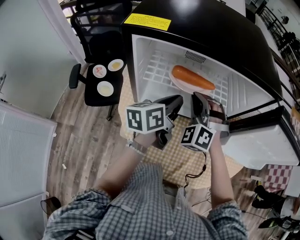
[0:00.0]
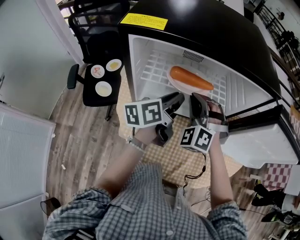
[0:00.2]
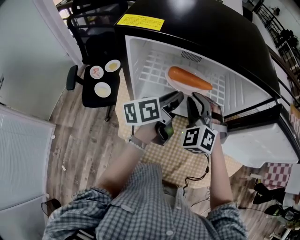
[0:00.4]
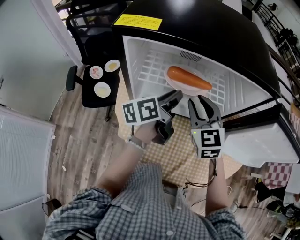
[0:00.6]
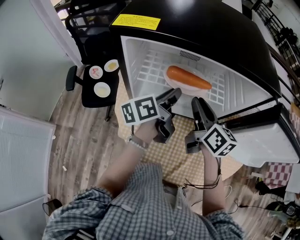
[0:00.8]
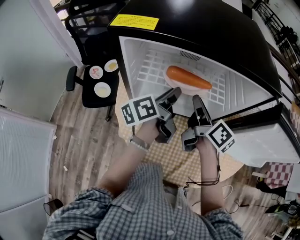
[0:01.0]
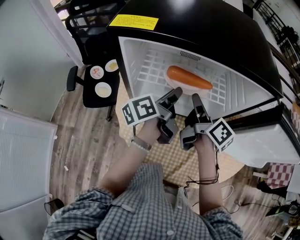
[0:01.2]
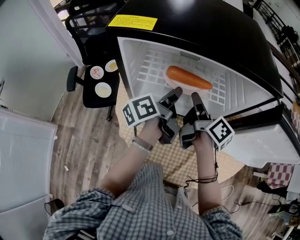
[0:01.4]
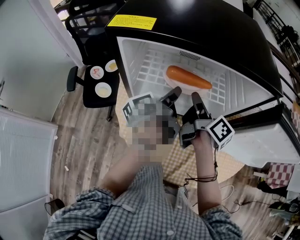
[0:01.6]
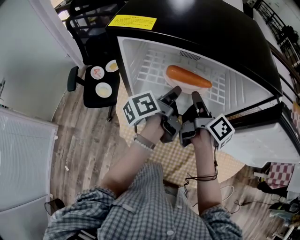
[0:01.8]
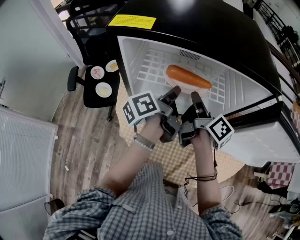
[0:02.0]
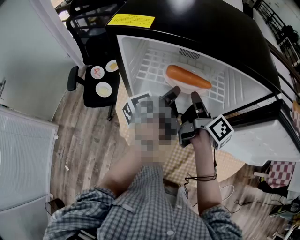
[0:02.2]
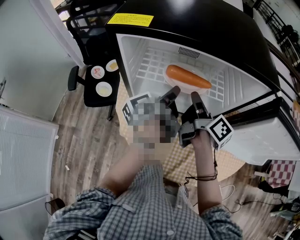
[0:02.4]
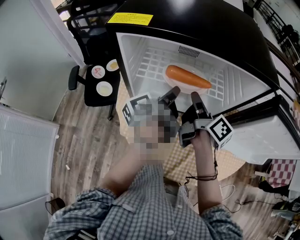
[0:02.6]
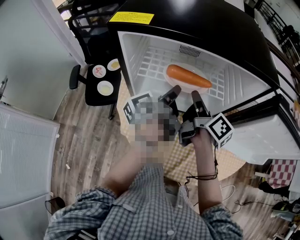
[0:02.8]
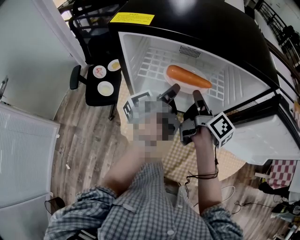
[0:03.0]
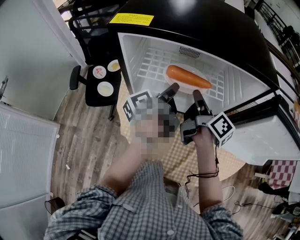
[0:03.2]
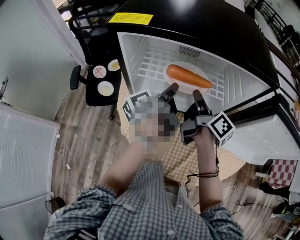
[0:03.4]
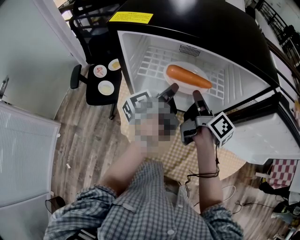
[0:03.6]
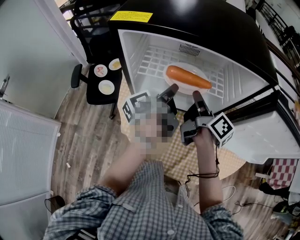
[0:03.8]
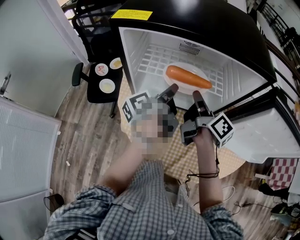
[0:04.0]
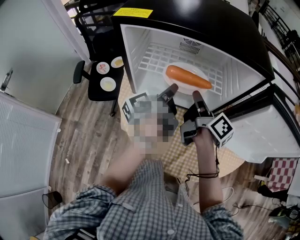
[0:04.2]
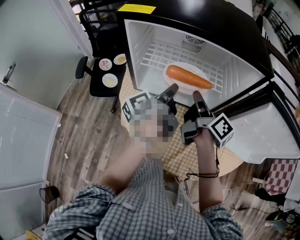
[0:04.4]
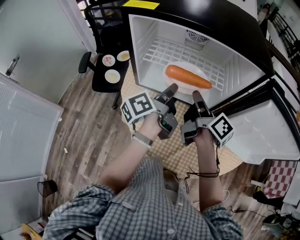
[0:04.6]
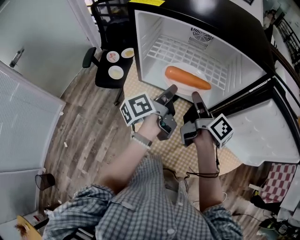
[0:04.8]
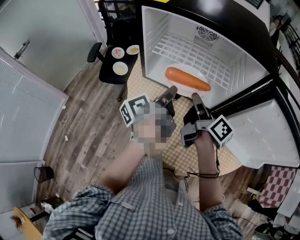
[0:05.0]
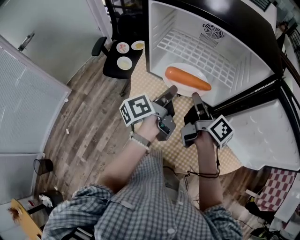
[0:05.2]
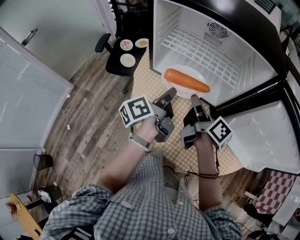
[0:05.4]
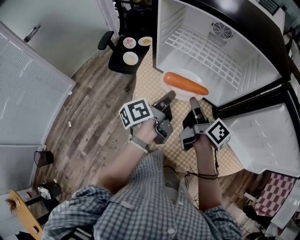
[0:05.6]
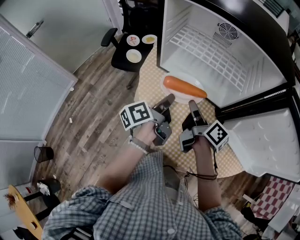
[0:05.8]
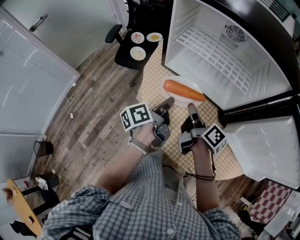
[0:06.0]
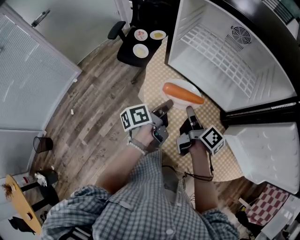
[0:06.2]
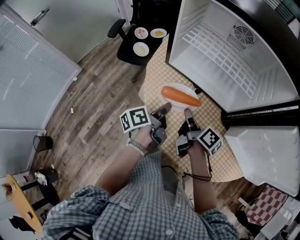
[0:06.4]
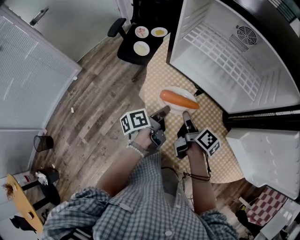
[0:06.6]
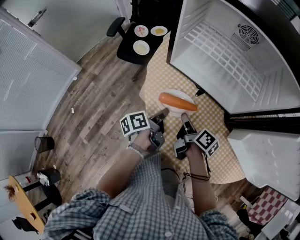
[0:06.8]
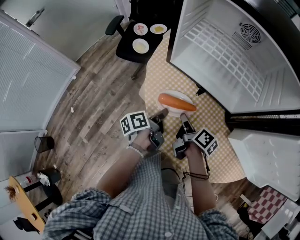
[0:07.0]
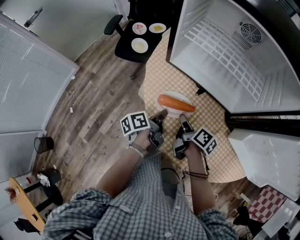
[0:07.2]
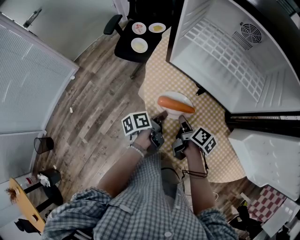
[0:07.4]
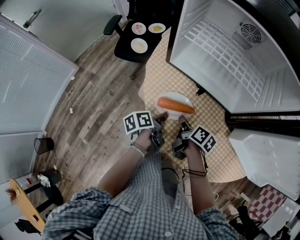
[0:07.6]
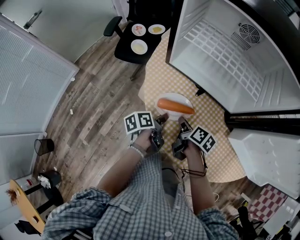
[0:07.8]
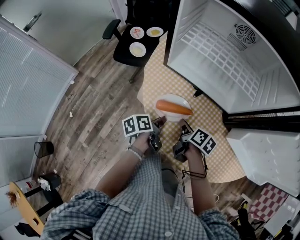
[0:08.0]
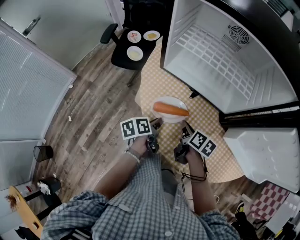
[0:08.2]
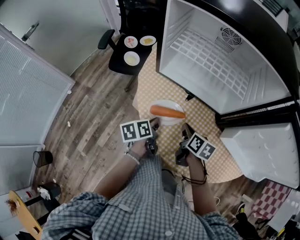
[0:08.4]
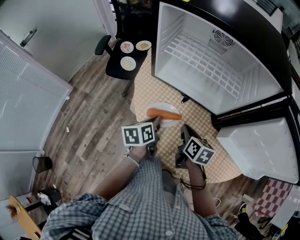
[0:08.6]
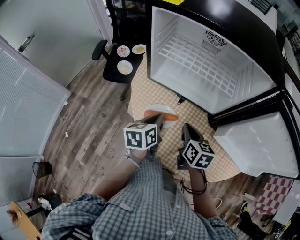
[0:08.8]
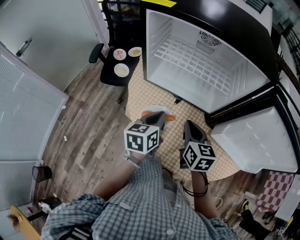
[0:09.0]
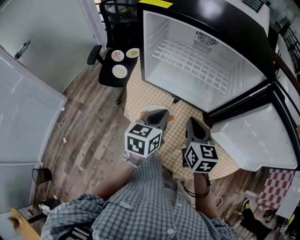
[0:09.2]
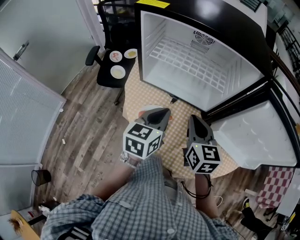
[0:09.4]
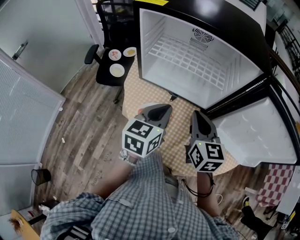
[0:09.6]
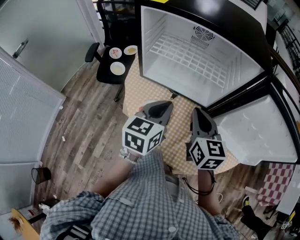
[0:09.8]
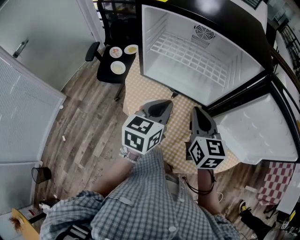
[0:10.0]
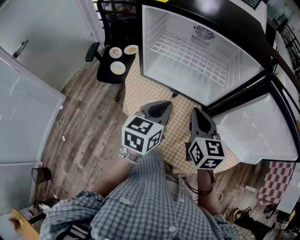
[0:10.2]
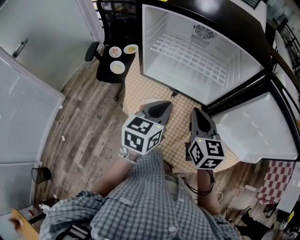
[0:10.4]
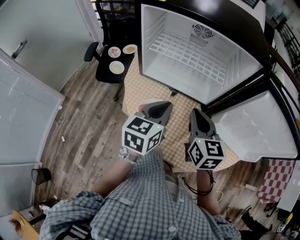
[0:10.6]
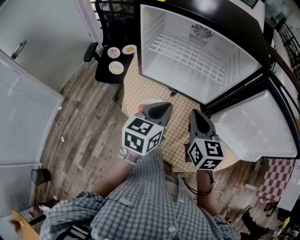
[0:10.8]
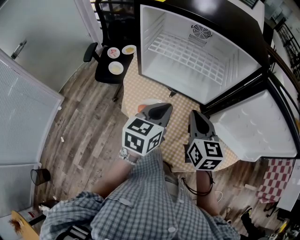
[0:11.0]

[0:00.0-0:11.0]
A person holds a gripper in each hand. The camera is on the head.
0:00.0 to 0:01.6: The right gripper twists approximately 140 degrees clockwise, seen from behind. The left gripper turns by roughly 30 degrees.
0:01.6 to 0:03.2: The grippers make only small movements.
0:03.2 to 0:04.8: The two grippers go roughly 10 cm backward.
0:04.8 to 0:06.2: The left gripper shifts about 15 cm downward, backward and to the left. Meanwhile the right gripper shifts about 15 cm downward, to the left and backward, and changes its angle by roughly 20 degrees.
0:06.2 to 0:07.8: Both grippers travel together downward, approximately 10 cm. The right gripper rotates about 20 degrees. The left gripper changes its angle by about 20 degrees.
0:07.8 to 0:09.4: The grippers both shift upward by about 25 cm. The right gripper twists roughly 50 degrees counterclockwise, seen from behind, while the left gripper twists roughly 60 degrees clockwise, seen from behind.
0:09.4 to 0:11.0: The grippers move only a little.

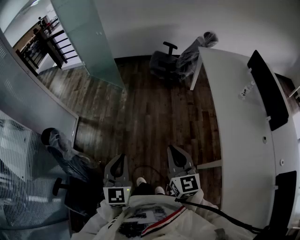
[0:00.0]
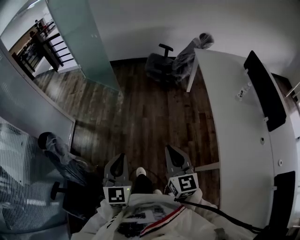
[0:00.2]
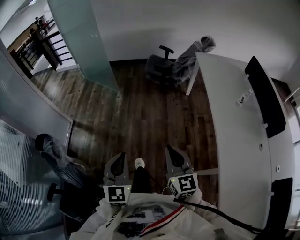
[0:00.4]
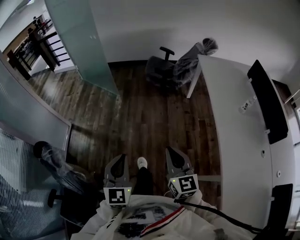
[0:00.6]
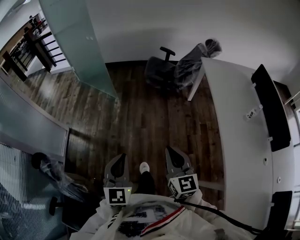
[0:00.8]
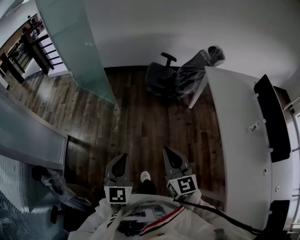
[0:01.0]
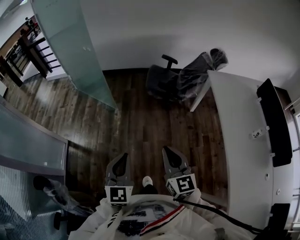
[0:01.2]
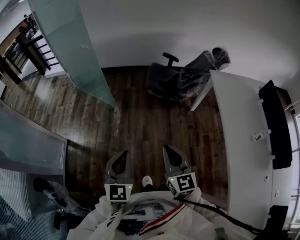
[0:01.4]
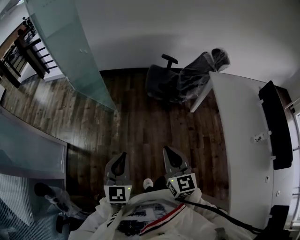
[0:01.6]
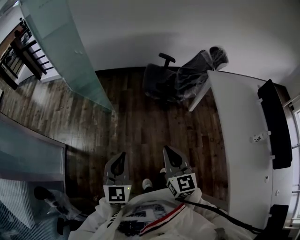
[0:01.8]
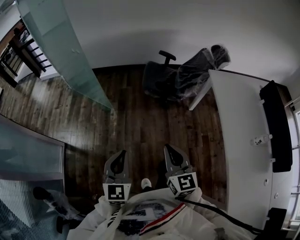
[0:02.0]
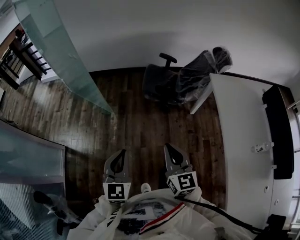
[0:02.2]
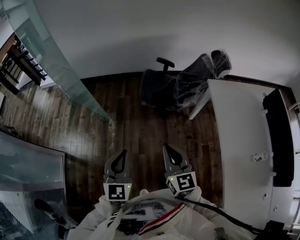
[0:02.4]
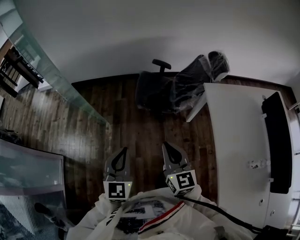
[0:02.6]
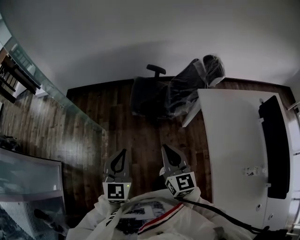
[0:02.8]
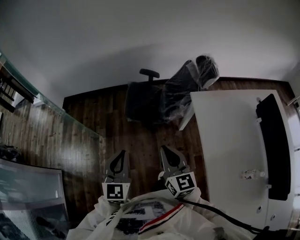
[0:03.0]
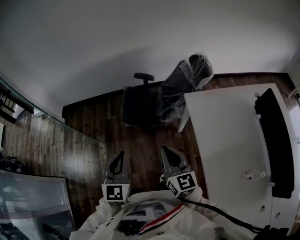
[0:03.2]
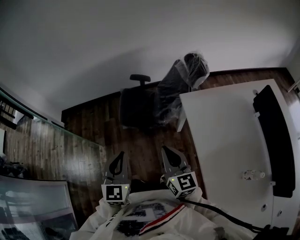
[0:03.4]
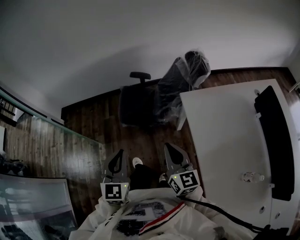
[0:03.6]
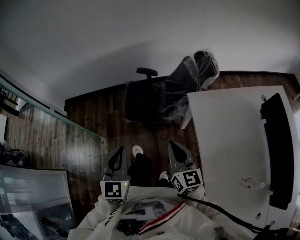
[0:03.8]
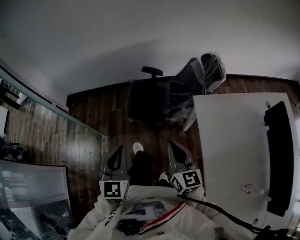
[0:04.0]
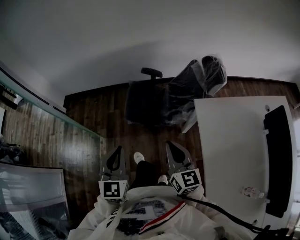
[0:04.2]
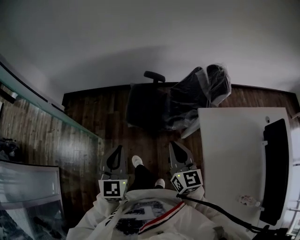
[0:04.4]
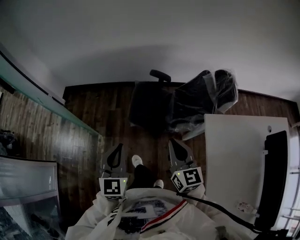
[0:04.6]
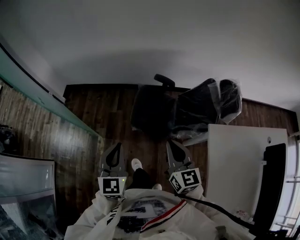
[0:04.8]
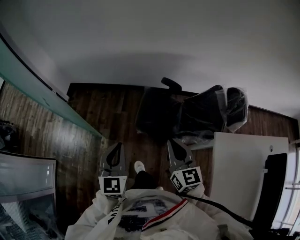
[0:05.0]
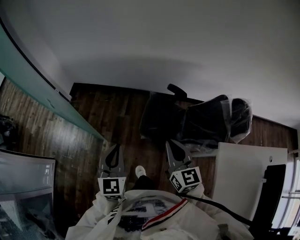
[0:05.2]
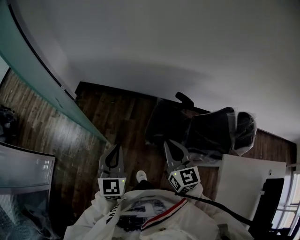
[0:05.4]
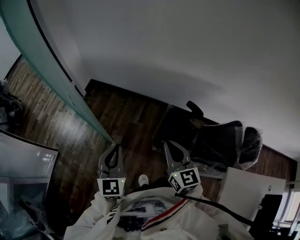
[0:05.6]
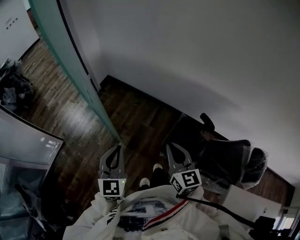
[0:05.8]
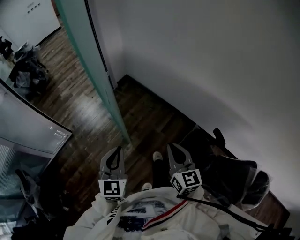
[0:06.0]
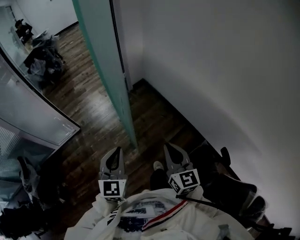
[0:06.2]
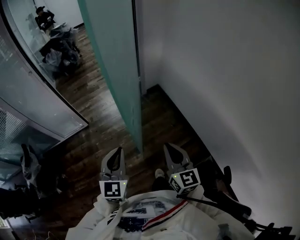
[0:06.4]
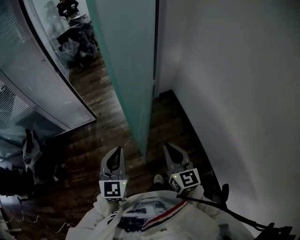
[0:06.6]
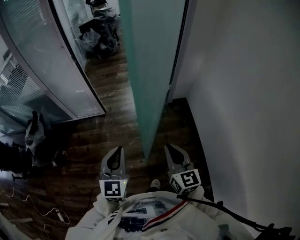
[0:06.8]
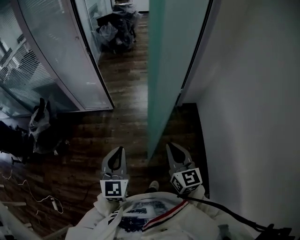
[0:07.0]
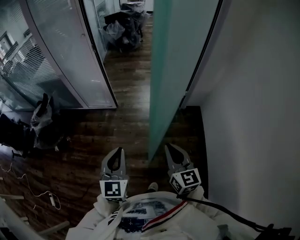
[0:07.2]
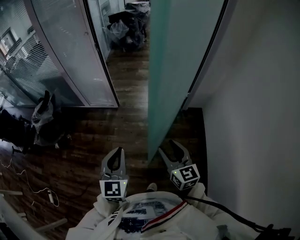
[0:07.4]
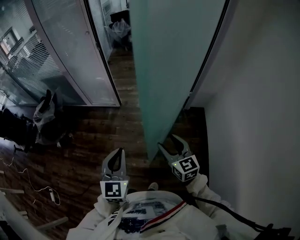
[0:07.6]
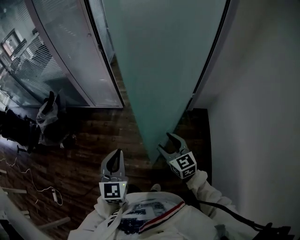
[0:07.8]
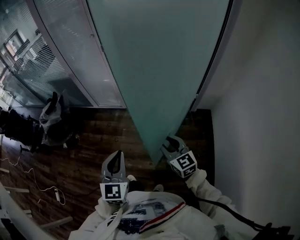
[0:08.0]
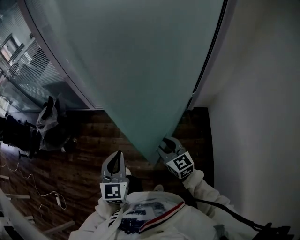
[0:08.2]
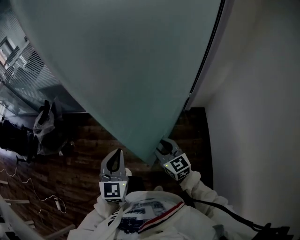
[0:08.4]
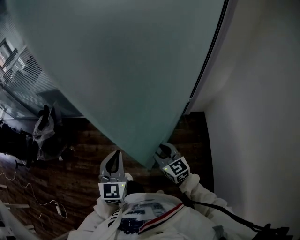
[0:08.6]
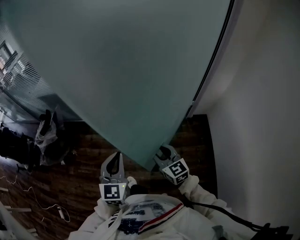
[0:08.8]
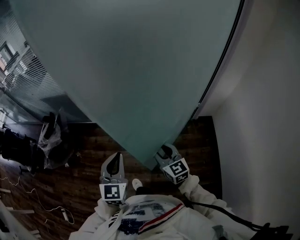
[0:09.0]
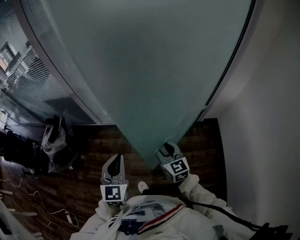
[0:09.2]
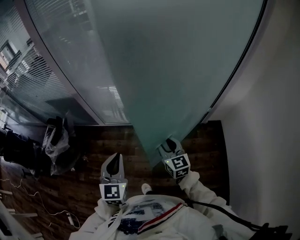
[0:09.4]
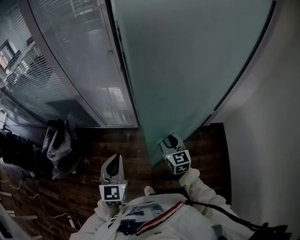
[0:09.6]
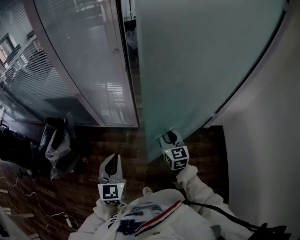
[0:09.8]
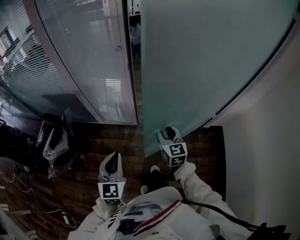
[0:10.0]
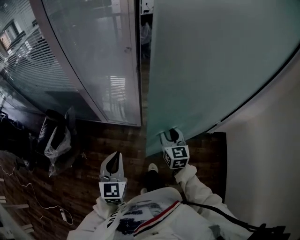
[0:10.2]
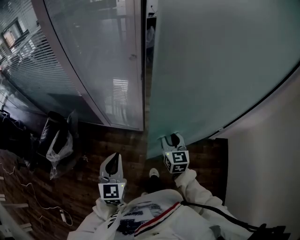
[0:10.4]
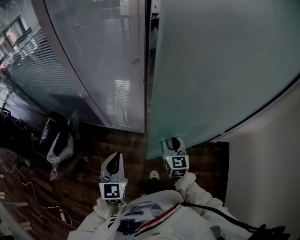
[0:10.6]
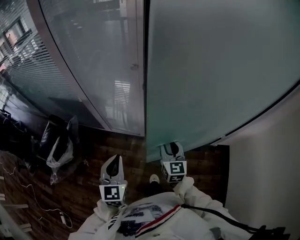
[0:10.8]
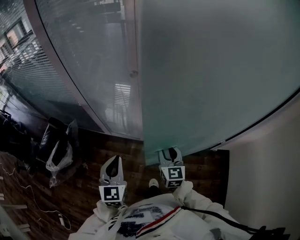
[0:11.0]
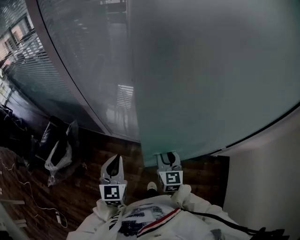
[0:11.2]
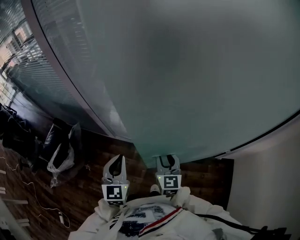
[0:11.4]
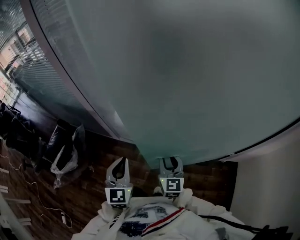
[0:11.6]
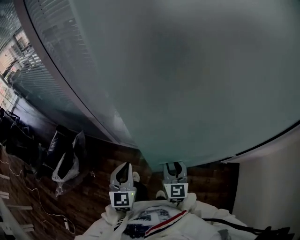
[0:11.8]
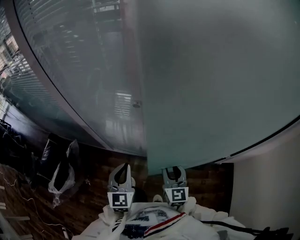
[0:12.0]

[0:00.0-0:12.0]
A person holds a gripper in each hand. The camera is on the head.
0:00.0 to 0:01.6: The two grippers travel together, forward, approximately 40 cm.
0:01.6 to 0:03.0: The grippers both shift forward and to the right by about 35 cm.
0:03.0 to 0:04.4: The two grippers go roughly 15 cm forward.
0:04.4 to 0:06.0: The left gripper shifts by some 40 cm, and changes its angle by some 40 degrees. Meanwhile the right gripper ends up roughly 50 cm from where it was, and swivels approximately 40 degrees.
0:06.0 to 0:07.6: The left gripper changes place by some 15 cm, and rotates some 50 degrees. The right gripper ends up roughly 35 cm from where it was, changes its angle by about 70 degrees, and opens its fingers.
0:07.6 to 0:09.0: The two grippers go about 20 cm forward and to the left. The right gripper closes its fingers.
0:09.0 to 0:10.4: The left gripper is displaced forward and to the left by some 30 cm. Meanwhile the right gripper goes roughly 30 cm forward.
0:10.4 to 0:12.0: The left gripper is displaced forward by approximately 20 cm, while the right gripper moves forward, some 10 cm.

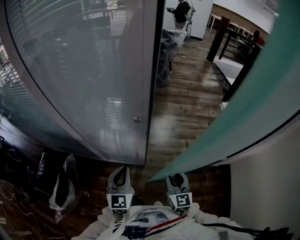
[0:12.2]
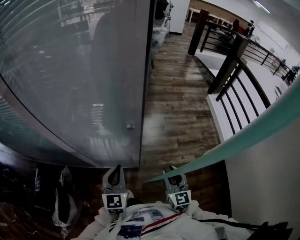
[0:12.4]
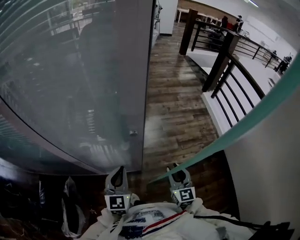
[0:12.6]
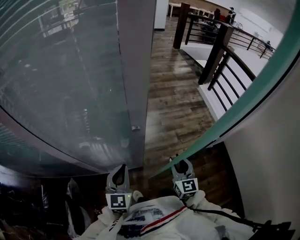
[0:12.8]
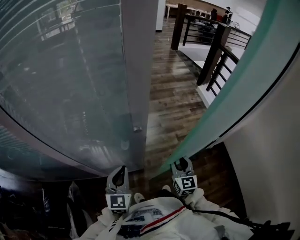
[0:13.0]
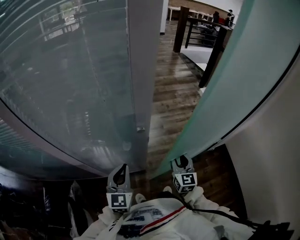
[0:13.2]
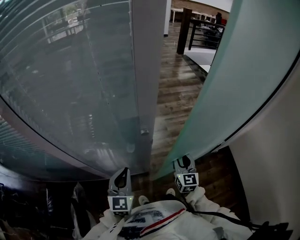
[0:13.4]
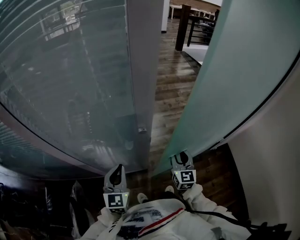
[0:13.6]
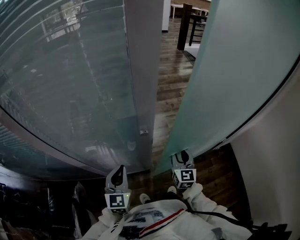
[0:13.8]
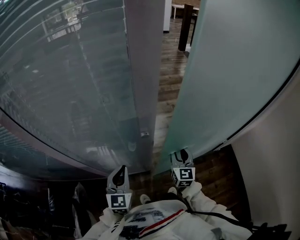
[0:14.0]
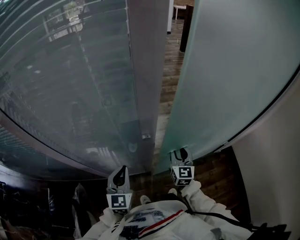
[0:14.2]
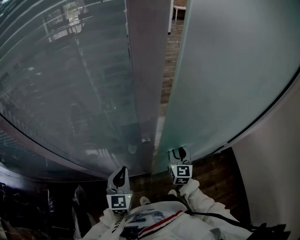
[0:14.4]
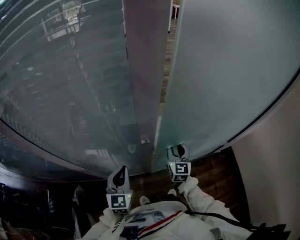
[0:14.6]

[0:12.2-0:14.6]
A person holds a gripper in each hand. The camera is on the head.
0:12.2 to 0:13.4: The right gripper travels forward by roughly 10 cm, and rotates about 20 degrees. Meanwhile the left gripper is displaced to the left and forward by roughly 5 cm.
0:13.4 to 0:14.6: The right gripper moves forward, some 10 cm.
